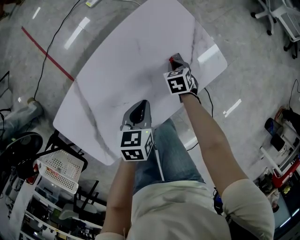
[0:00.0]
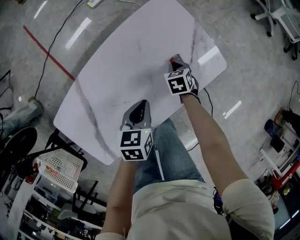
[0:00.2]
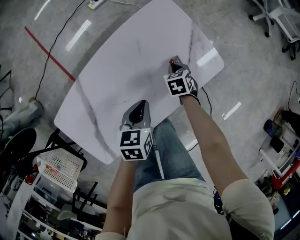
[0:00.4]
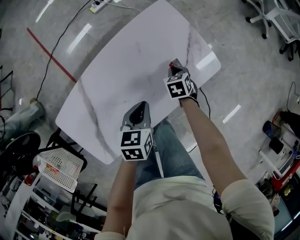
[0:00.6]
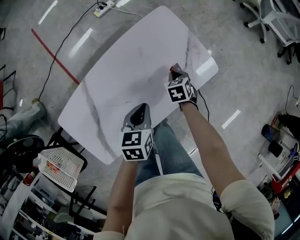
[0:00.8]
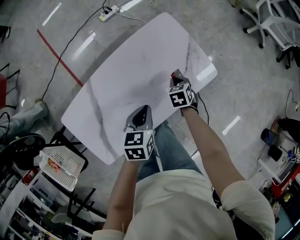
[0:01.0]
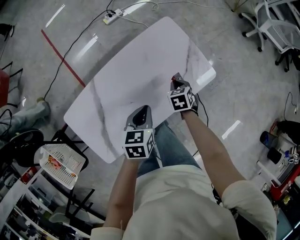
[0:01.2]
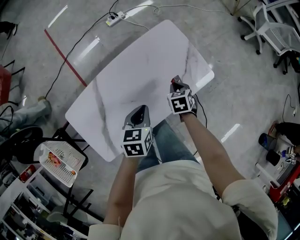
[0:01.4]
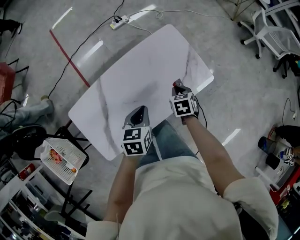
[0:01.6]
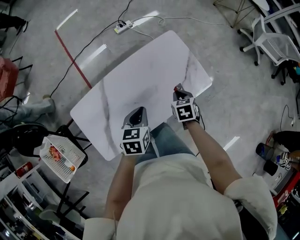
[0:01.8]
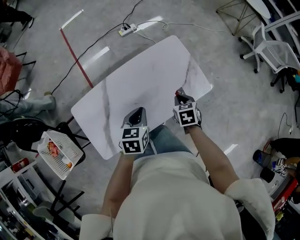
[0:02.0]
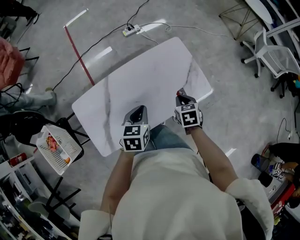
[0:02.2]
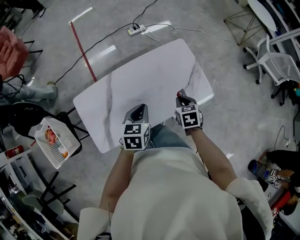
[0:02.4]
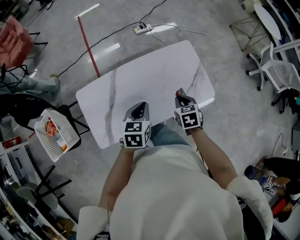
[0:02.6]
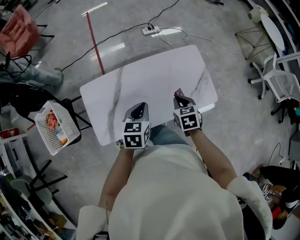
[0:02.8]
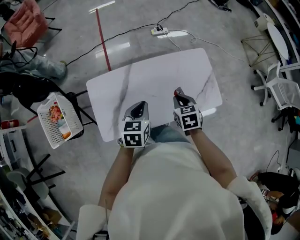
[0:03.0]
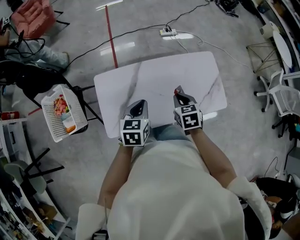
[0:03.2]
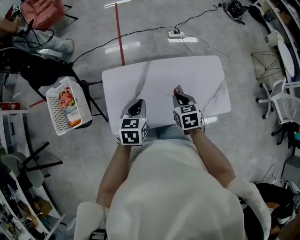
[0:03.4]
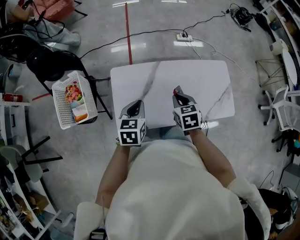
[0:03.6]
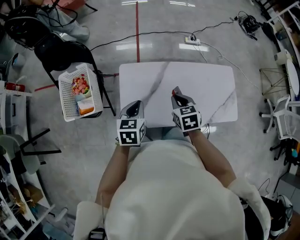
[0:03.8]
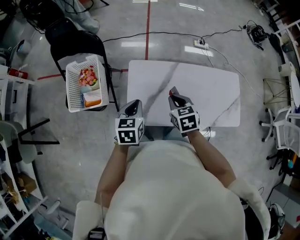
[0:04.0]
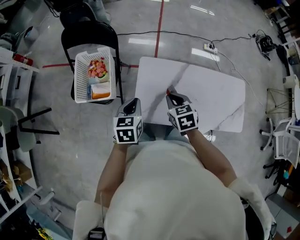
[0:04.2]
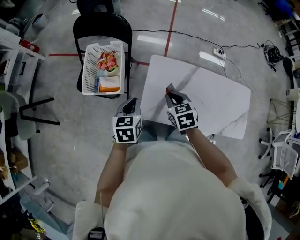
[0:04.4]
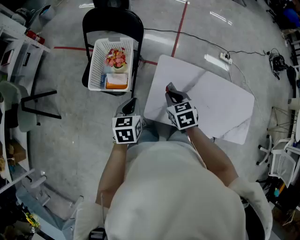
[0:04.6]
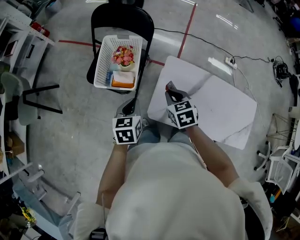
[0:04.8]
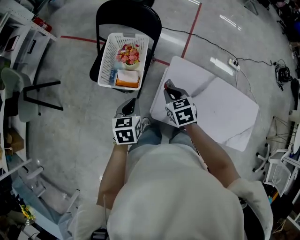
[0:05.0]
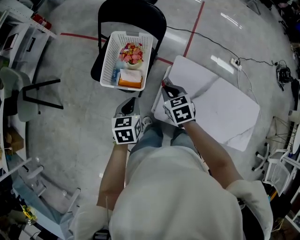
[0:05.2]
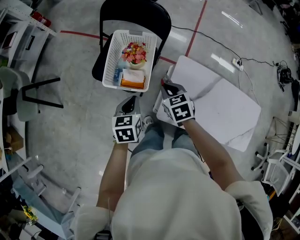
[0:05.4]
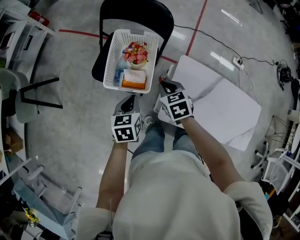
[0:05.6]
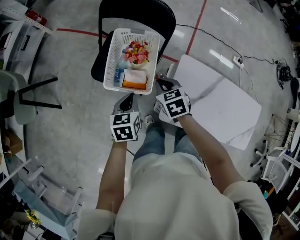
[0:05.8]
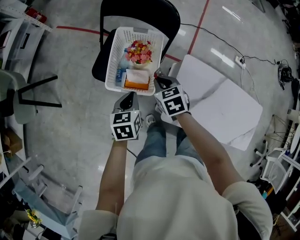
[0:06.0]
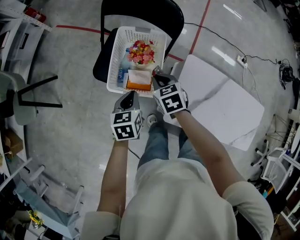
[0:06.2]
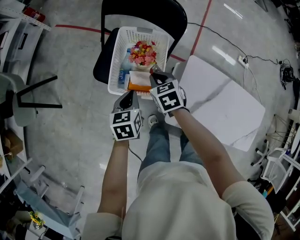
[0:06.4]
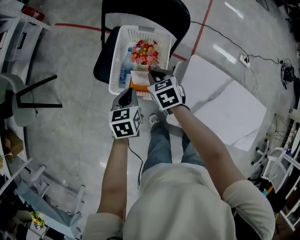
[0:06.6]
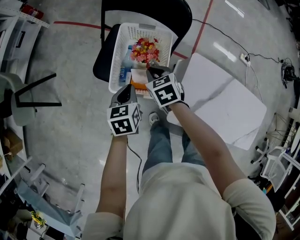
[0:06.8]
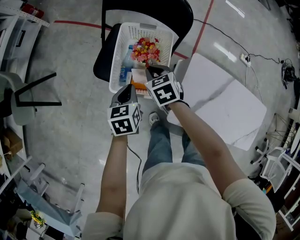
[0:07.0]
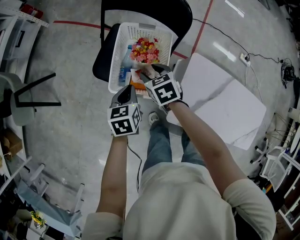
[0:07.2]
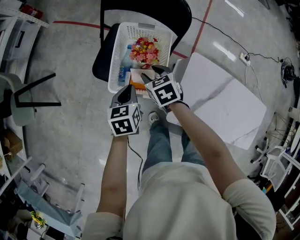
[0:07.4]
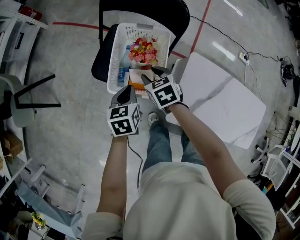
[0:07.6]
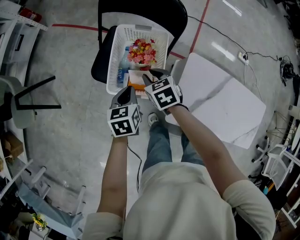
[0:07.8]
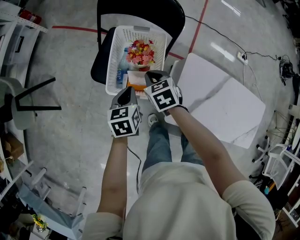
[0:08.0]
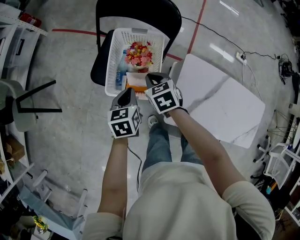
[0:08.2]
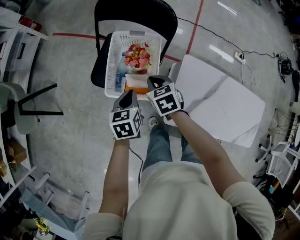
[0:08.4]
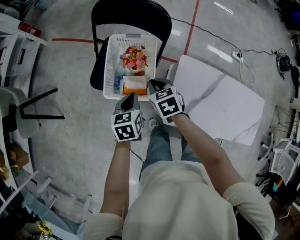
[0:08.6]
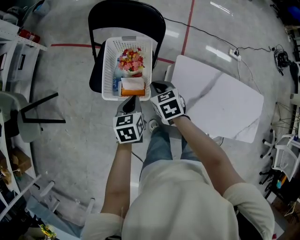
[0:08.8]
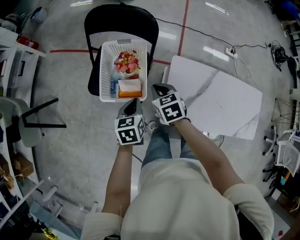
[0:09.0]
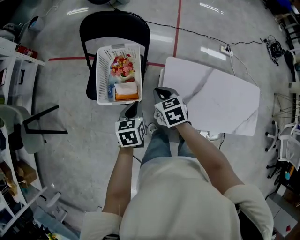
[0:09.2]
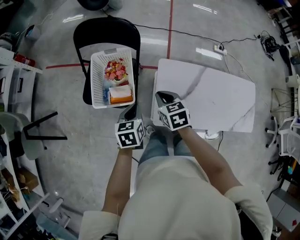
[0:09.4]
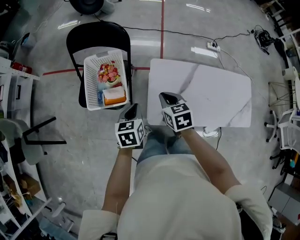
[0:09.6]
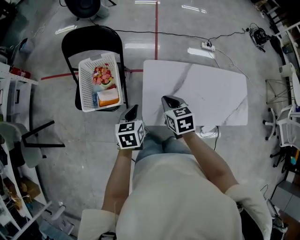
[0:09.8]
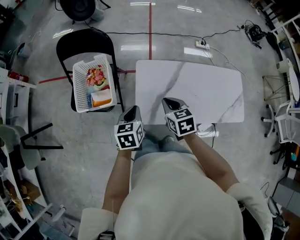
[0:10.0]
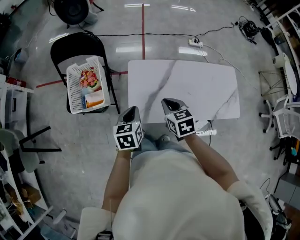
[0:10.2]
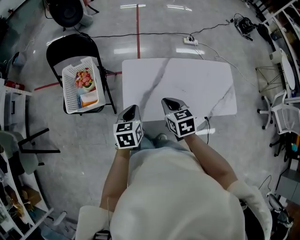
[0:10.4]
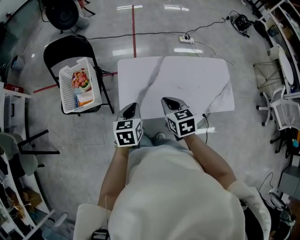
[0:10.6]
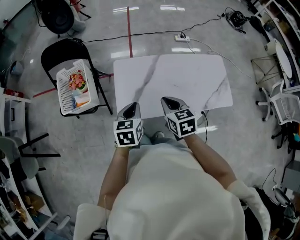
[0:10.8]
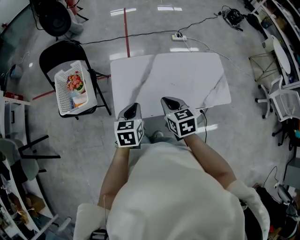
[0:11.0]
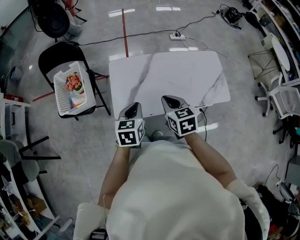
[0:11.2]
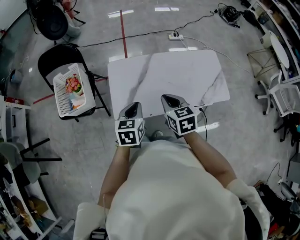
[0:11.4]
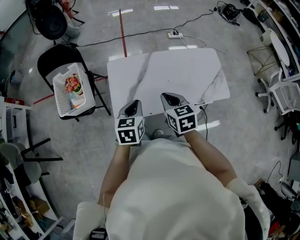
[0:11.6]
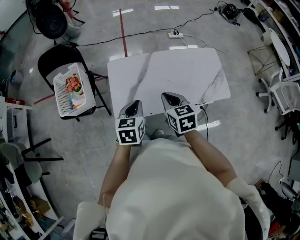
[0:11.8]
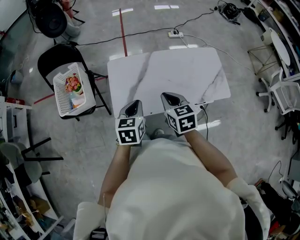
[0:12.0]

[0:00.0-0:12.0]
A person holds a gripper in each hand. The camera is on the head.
0:00.0 to 0:01.6: Both grippers move upward and backward, some 20 cm.
0:01.6 to 0:03.0: Both grippers move to the left, upward and backward, about 20 cm. The right gripper turns by about 20 degrees.
0:03.0 to 0:04.4: The two grippers travel together, about 40 cm. The right gripper turns by some 30 degrees, while the left gripper turns by approximately 30 degrees.
0:04.4 to 0:06.0: The two grippers go approximately 25 cm to the left and forward.
0:06.0 to 0:07.6: The right gripper heads forward and to the left, covering some 10 cm. The left gripper heads forward, covering about 5 cm.
0:07.6 to 0:09.0: The right gripper is displaced to the right, backward and upward by approximately 15 cm. The left gripper goes about 10 cm to the right and backward.
0:09.0 to 0:10.4: The two grippers go about 35 cm to the right and backward. The right gripper changes its angle by about 20 degrees.
0:10.4 to 0:12.0: The two grippers go approximately 15 cm to the right and backward.

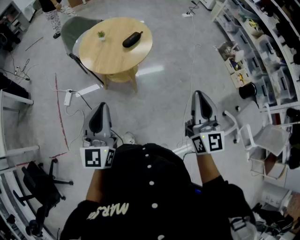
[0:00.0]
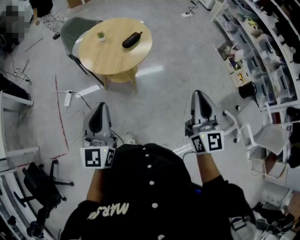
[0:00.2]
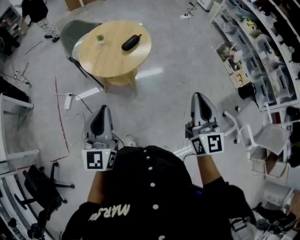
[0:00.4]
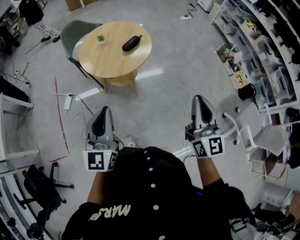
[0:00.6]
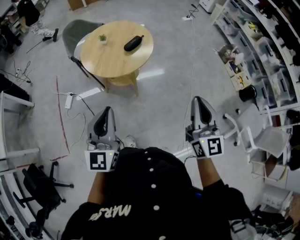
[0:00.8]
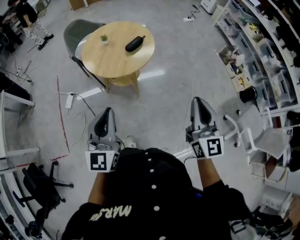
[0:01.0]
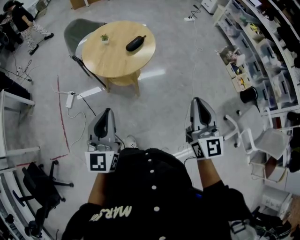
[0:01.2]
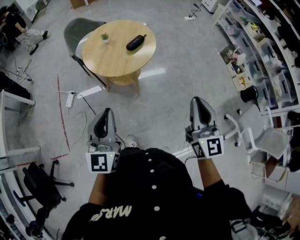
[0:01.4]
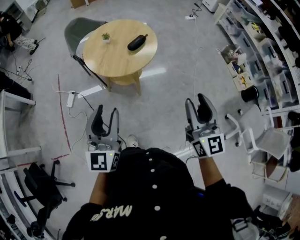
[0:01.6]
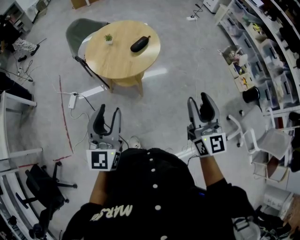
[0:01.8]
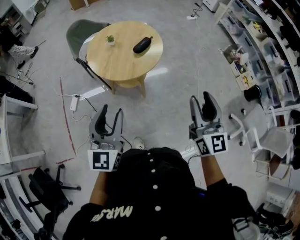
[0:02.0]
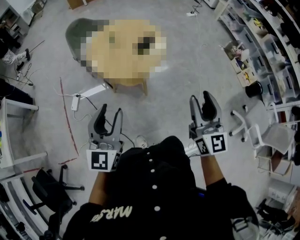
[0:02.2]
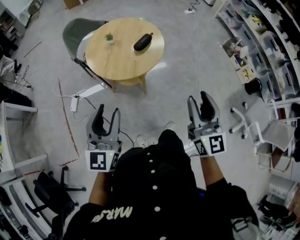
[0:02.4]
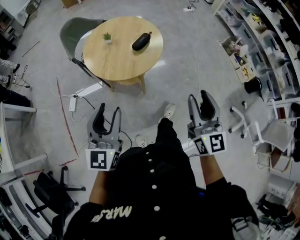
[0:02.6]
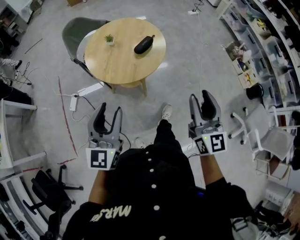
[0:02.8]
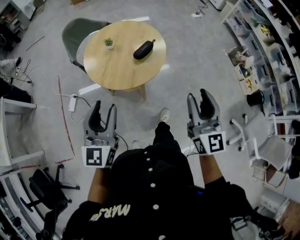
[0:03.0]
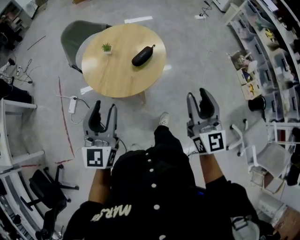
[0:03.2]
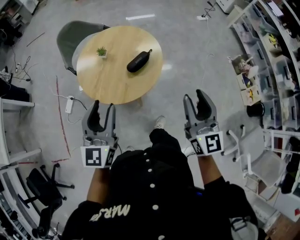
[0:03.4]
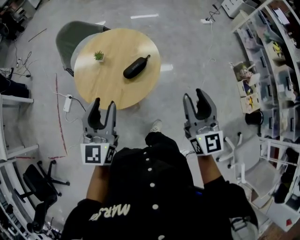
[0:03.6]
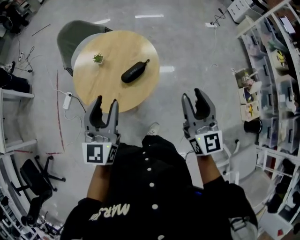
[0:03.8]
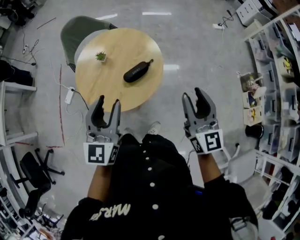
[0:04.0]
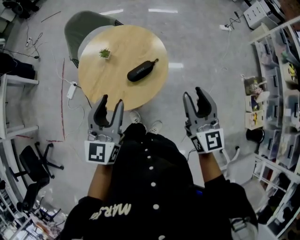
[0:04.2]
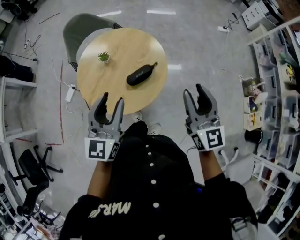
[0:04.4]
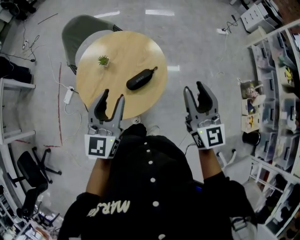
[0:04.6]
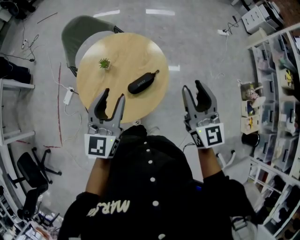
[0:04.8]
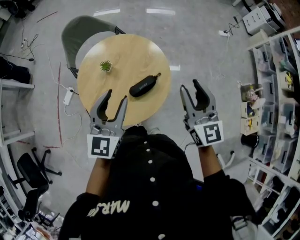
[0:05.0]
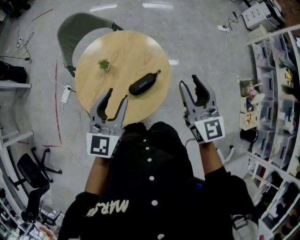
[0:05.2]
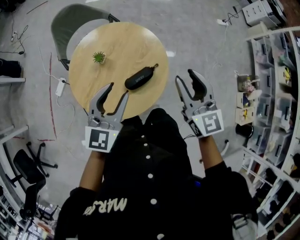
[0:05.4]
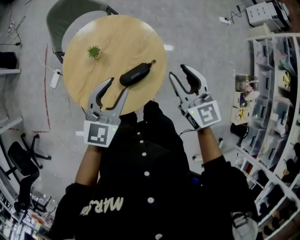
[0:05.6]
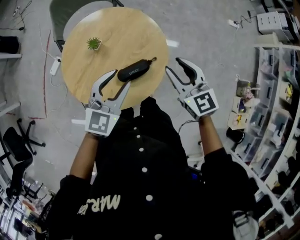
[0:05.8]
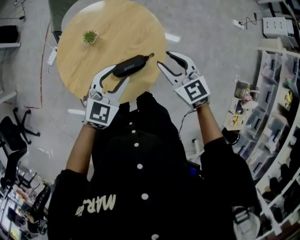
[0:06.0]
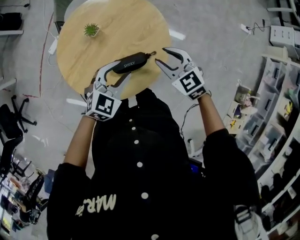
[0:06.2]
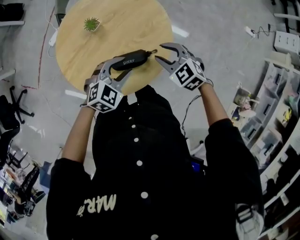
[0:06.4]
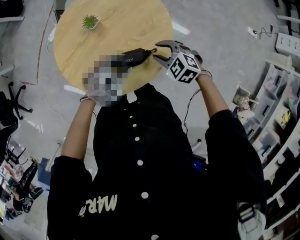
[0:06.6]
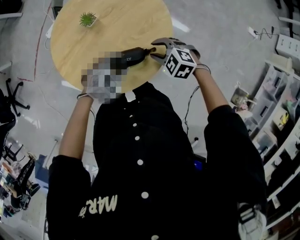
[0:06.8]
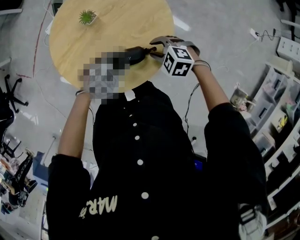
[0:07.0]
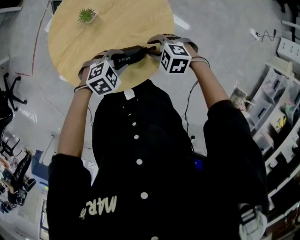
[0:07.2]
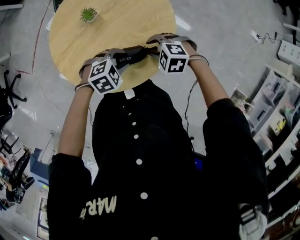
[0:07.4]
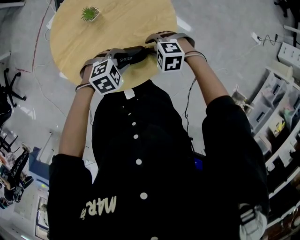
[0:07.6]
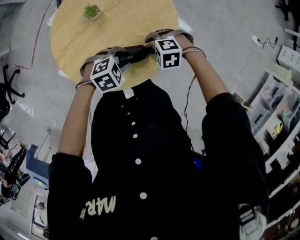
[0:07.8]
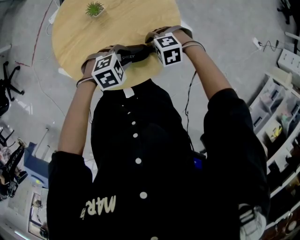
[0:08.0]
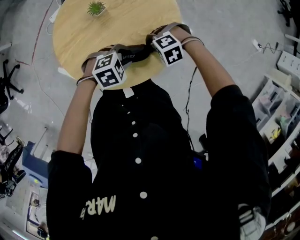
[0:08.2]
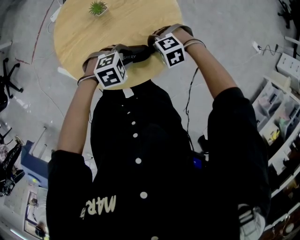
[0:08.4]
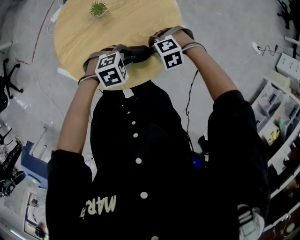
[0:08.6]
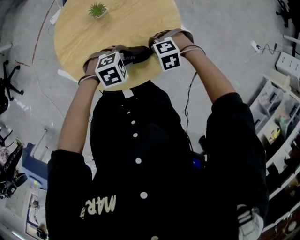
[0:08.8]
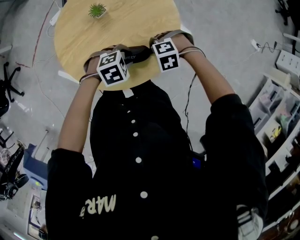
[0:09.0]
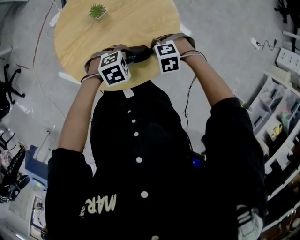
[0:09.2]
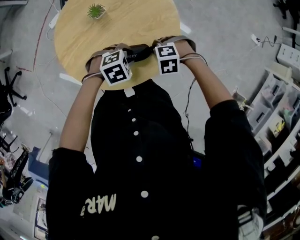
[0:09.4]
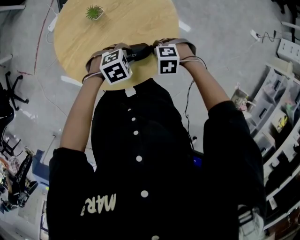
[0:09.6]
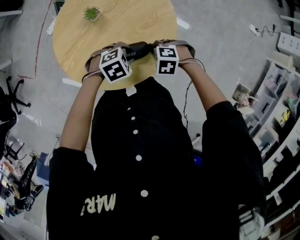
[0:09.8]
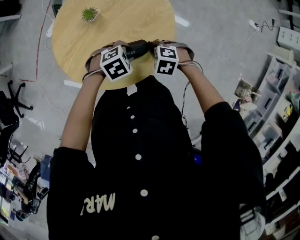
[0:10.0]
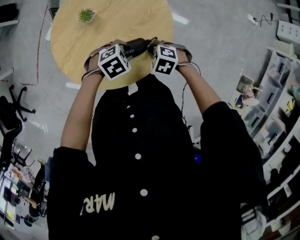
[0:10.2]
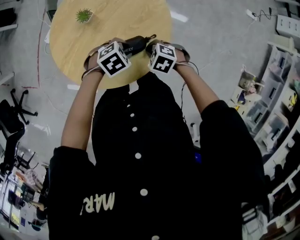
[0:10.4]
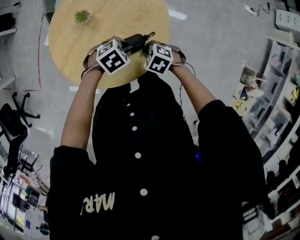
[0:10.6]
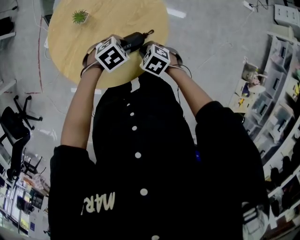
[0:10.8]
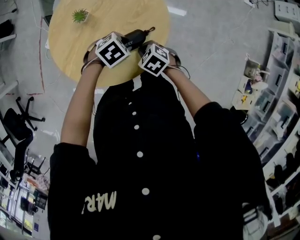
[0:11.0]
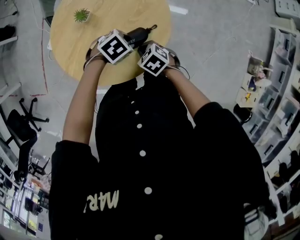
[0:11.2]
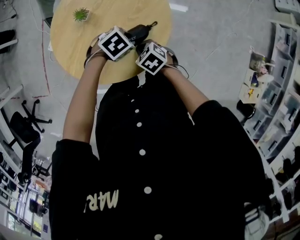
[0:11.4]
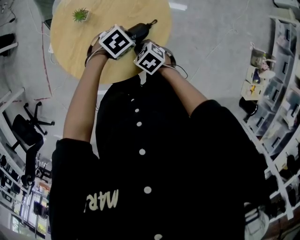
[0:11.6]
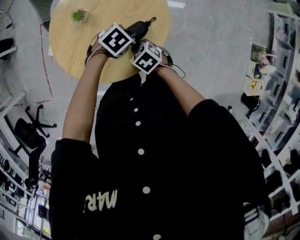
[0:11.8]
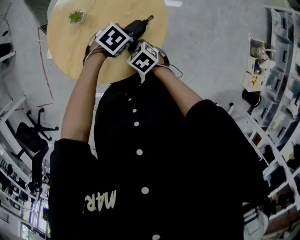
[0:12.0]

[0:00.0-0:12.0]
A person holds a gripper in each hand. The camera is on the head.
0:00.0 to 0:01.6: The right gripper opens its fingers, while the left gripper opens up.
0:01.6 to 0:03.0: Both grippers travel together forward, about 15 cm.
0:03.0 to 0:04.4: The right gripper shifts about 35 cm forward, while the left gripper moves forward and to the right, roughly 35 cm.
0:04.4 to 0:06.0: The right gripper is displaced forward and downward by about 30 cm, and tips its fingers downward by some 30 degrees. The left gripper travels forward, downward and to the right by roughly 25 cm, and swivels roughly 30 degrees.
0:06.0 to 0:07.6: The grippers both shift downward by roughly 20 cm. The left gripper tips its fingers downward by roughly 30 degrees. Meanwhile the right gripper angles its fingers downward, by some 40 degrees.
0:07.6 to 0:09.0: The right gripper closes its fingers.
0:09.0 to 0:10.4: The right gripper changes place by approximately 5 cm, and rotates around the line of its fingers by roughly 50 degrees, clockwise from behind.
0:10.4 to 0:12.0: The right gripper changes place by roughly 10 cm, and turns by about 40 degrees.
